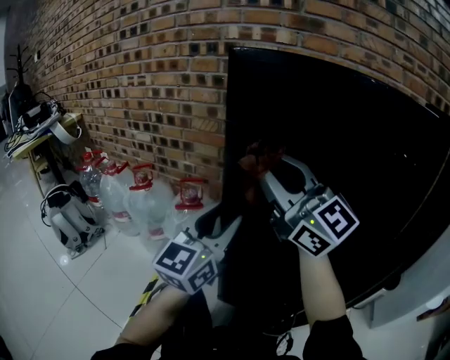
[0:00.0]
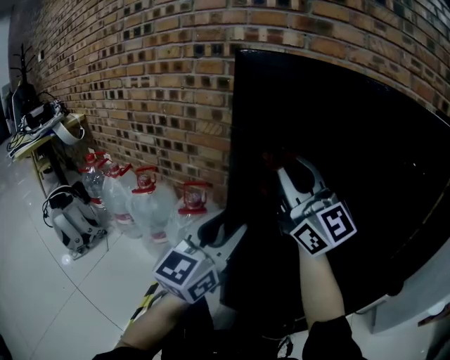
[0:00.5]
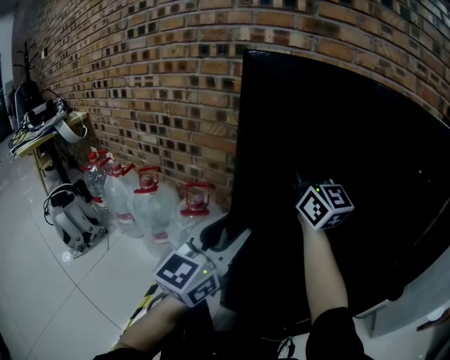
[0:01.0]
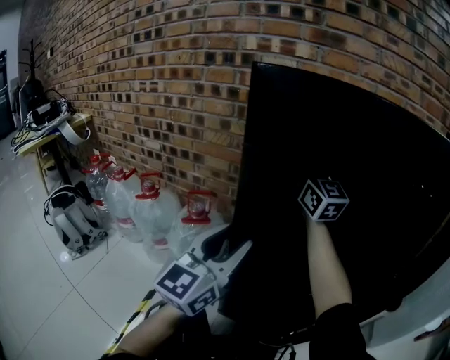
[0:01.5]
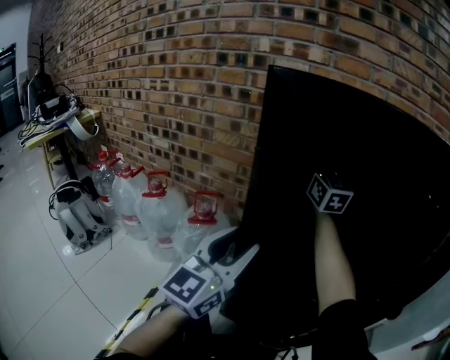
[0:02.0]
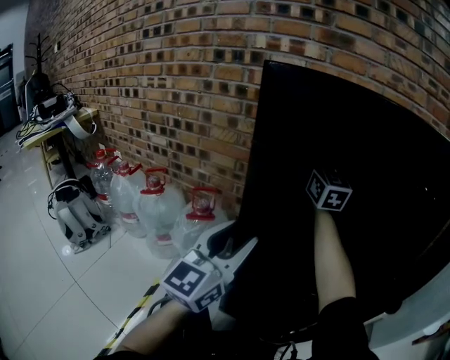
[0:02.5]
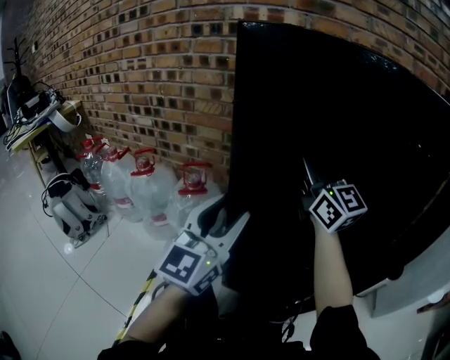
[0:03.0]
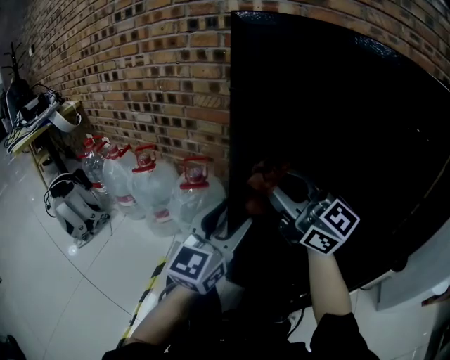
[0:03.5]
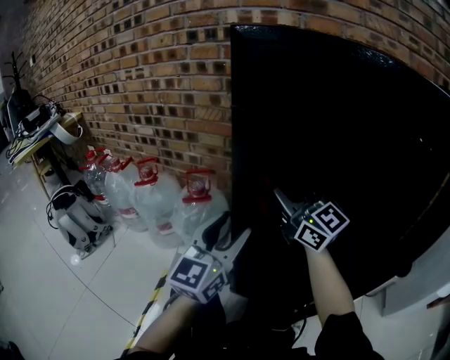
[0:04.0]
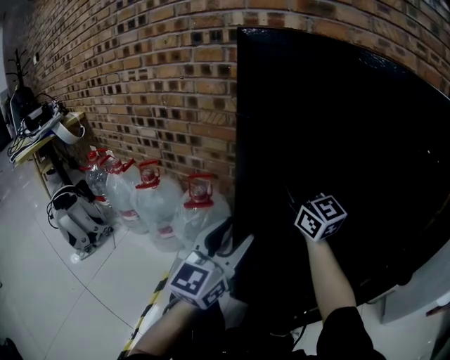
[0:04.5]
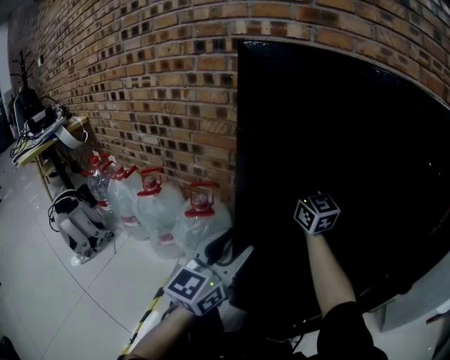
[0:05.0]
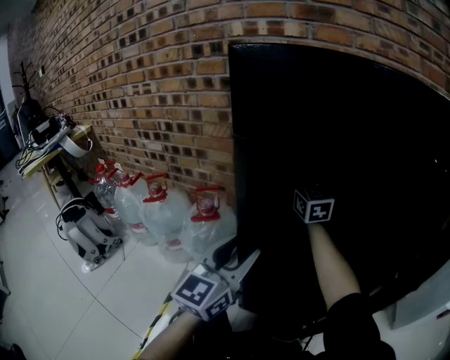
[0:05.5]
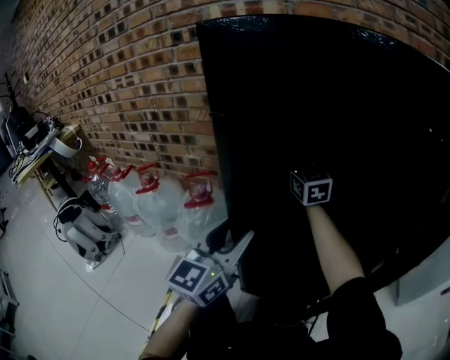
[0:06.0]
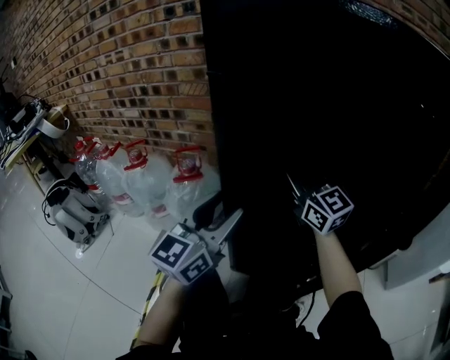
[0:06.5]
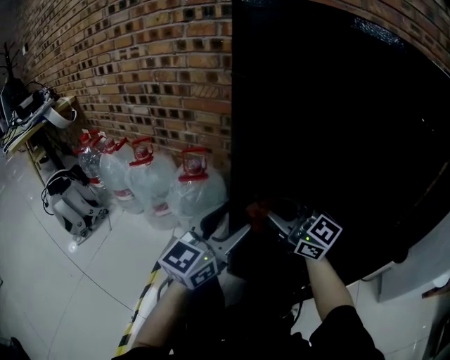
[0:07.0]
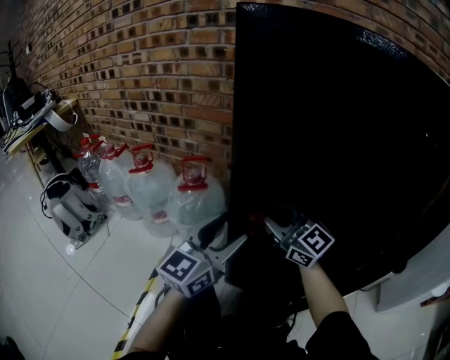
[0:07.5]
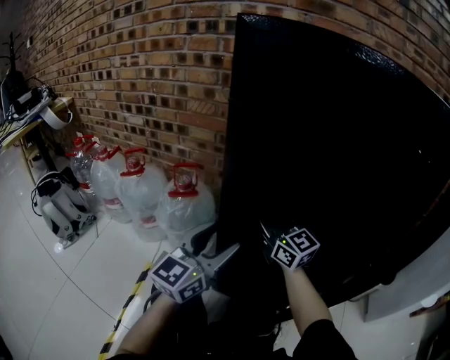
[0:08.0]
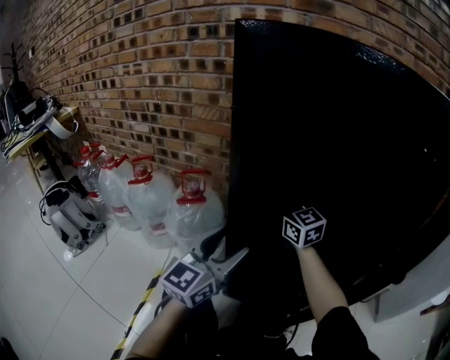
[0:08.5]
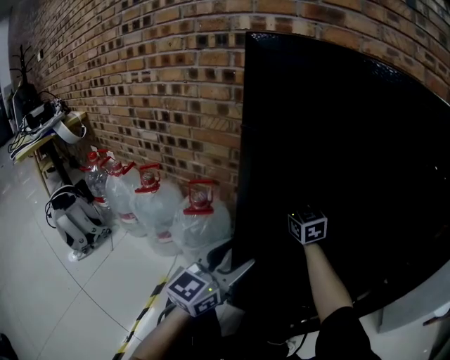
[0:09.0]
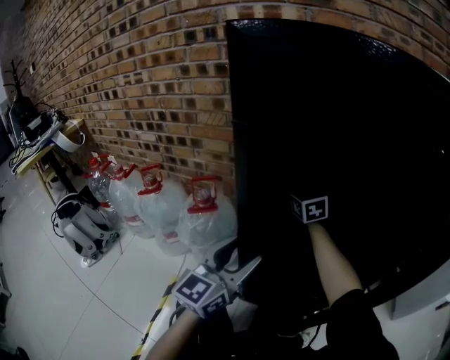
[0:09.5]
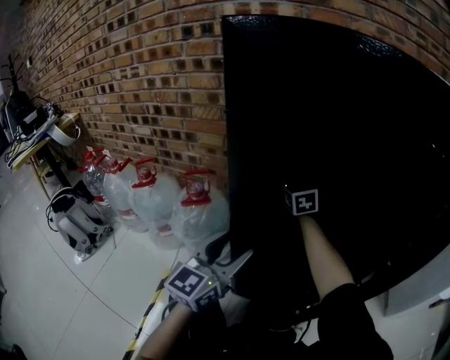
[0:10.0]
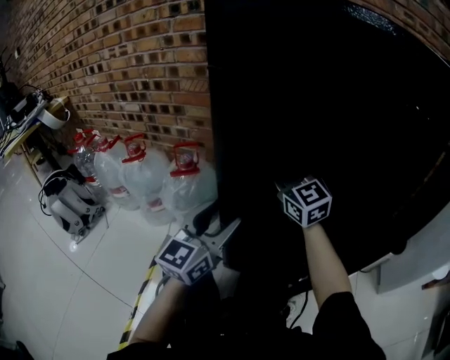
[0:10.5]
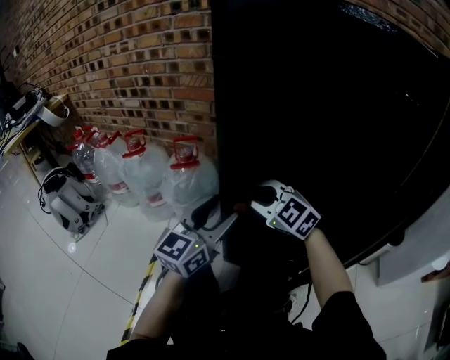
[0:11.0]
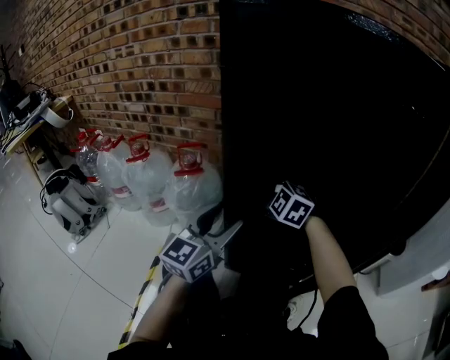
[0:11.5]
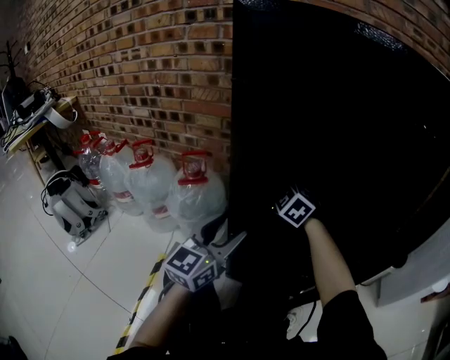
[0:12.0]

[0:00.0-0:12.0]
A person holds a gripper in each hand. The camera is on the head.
0.0 to 2.0 s: The right gripper travels forward by some 25 cm, and swivels about 30 degrees.
2.0 to 4.0 s: The left gripper travels downward by some 5 cm; the right gripper shifts about 20 cm backward, downward and to the left, and rotates some 30 degrees.
4.0 to 6.0 s: The right gripper is displaced forward and to the right by approximately 20 cm, and rotates approximately 30 degrees.
6.0 to 8.0 s: The right gripper travels backward, downward and to the left by some 20 cm, and rotates roughly 30 degrees.
8.0 to 10.0 s: The right gripper moves forward, some 20 cm, and rotates roughly 30 degrees.
10.0 to 12.0 s: The right gripper moves backward and downward, about 15 cm, and swivels some 40 degrees.

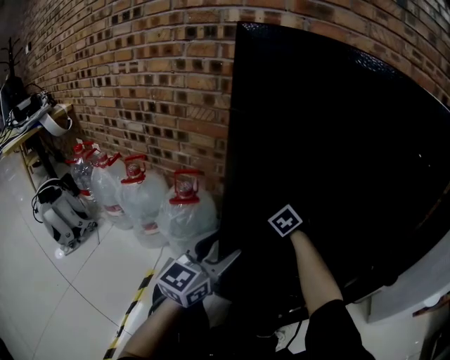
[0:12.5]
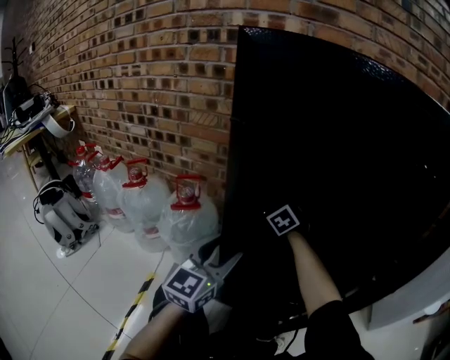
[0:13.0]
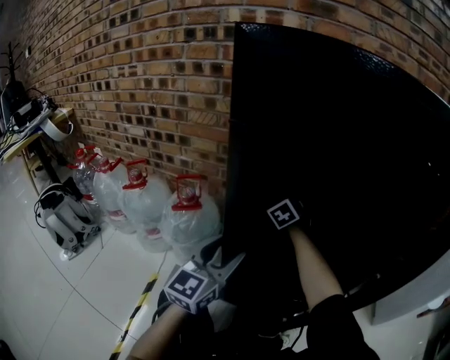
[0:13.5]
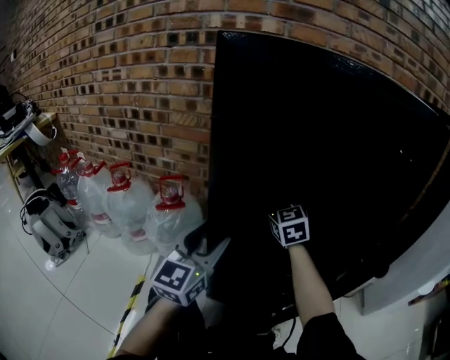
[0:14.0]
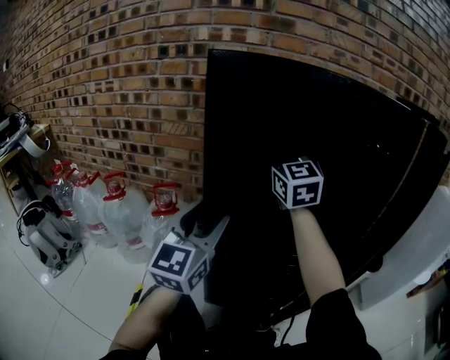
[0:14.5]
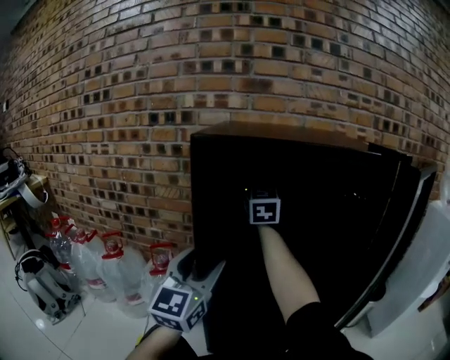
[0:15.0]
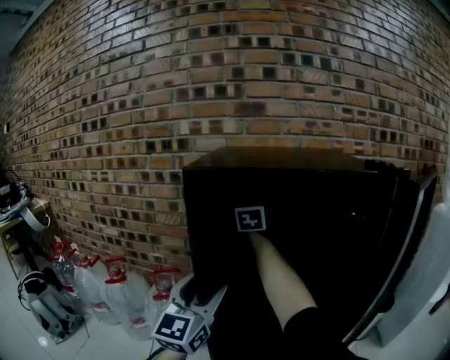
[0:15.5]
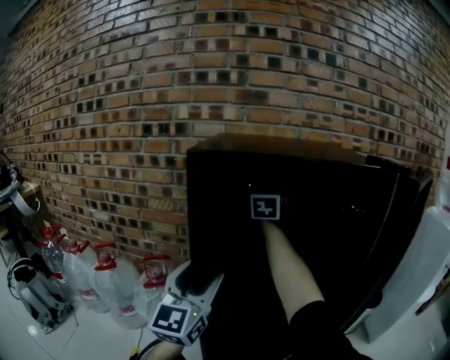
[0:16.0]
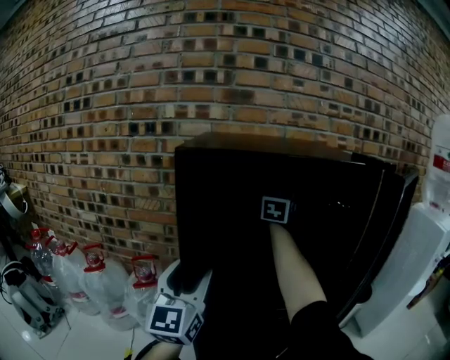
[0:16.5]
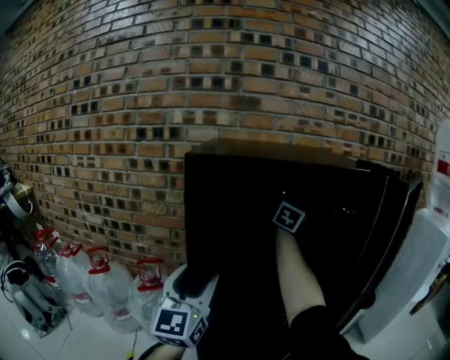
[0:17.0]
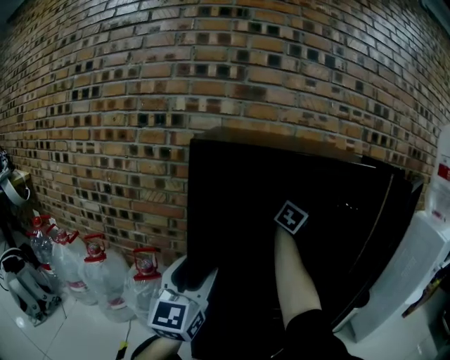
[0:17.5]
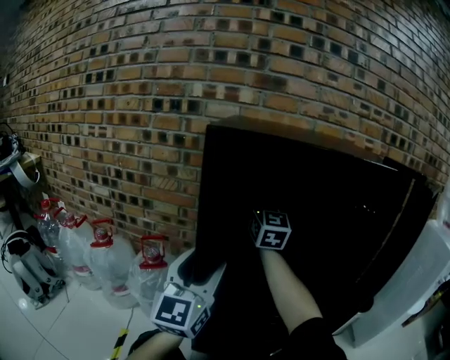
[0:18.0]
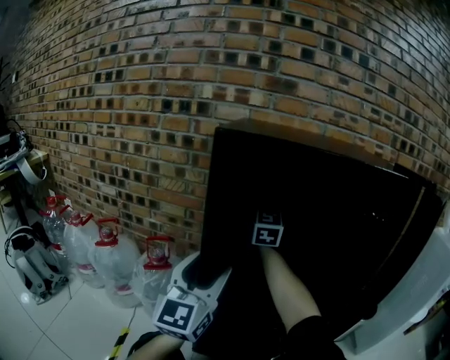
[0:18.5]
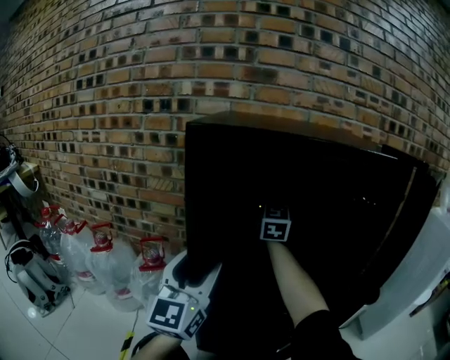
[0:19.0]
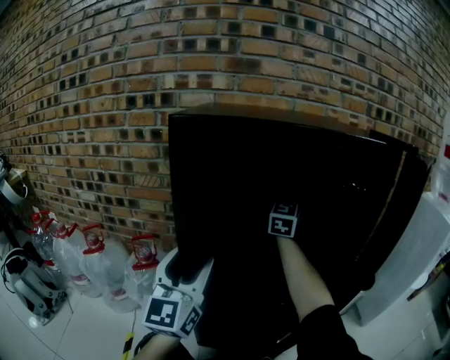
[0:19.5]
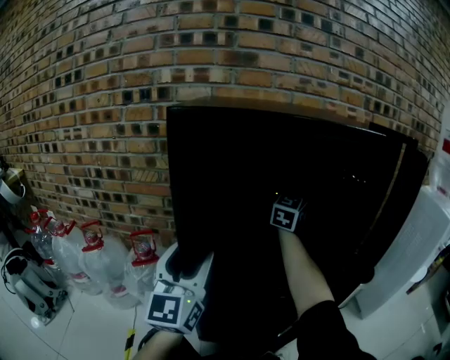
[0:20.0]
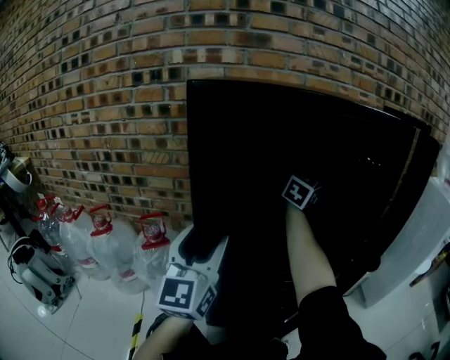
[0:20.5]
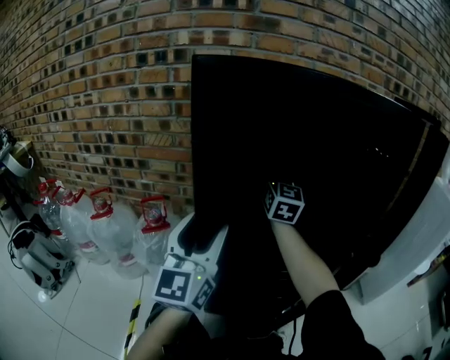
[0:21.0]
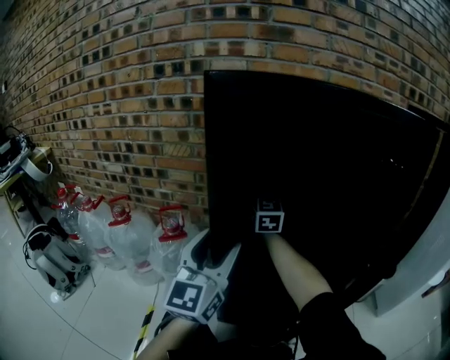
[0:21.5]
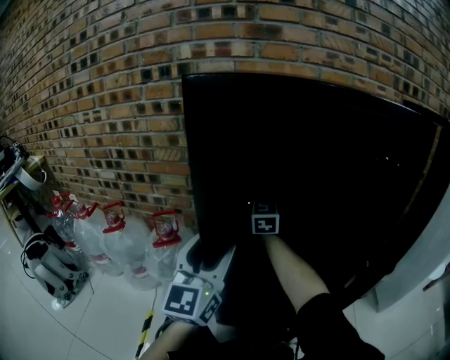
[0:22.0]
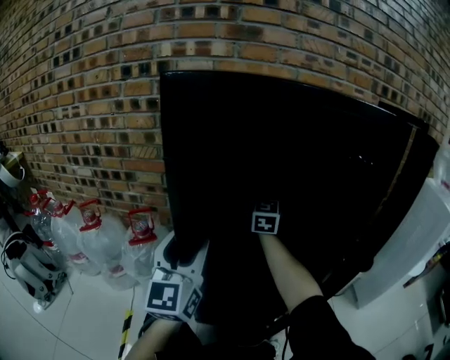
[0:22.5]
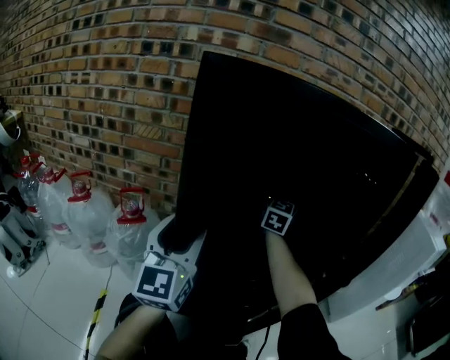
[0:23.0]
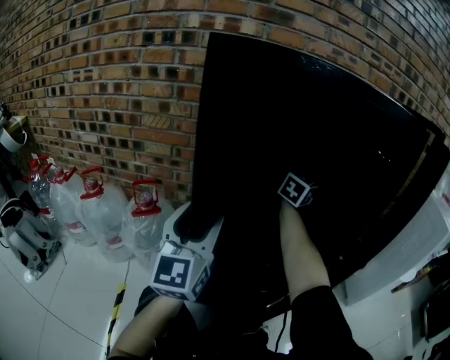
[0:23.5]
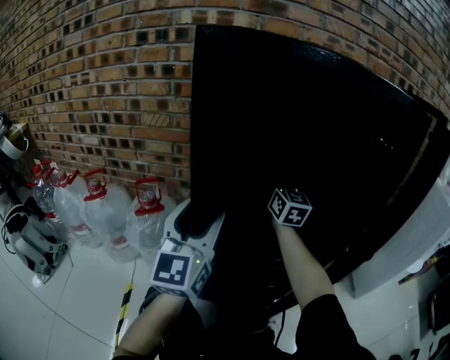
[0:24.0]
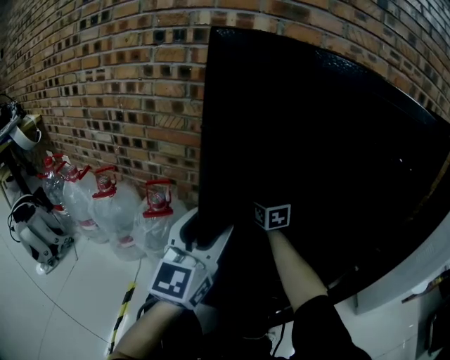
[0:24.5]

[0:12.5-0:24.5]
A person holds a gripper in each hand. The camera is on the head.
12.5 to 14.5 s: The right gripper heads upward, covering about 30 cm, and tips its fingers upward by approximately 40 degrees. Meanwhile the left gripper goes about 10 cm upward.
14.5 to 16.5 s: The right gripper goes roughly 20 cm to the right, upward and forward, and turns by approximately 40 degrees.
16.5 to 18.5 s: The right gripper travels to the left and downward by some 15 cm, and swivels some 20 degrees.
18.5 to 20.5 s: The right gripper heads to the right, covering approximately 25 cm, and changes its angle by some 40 degrees.
20.5 to 22.5 s: The right gripper travels to the left and downward by approximately 15 cm, and rotates approximately 30 degrees.
22.5 to 24.5 s: The right gripper ends up approximately 15 cm from where it was, and changes its angle by some 30 degrees.

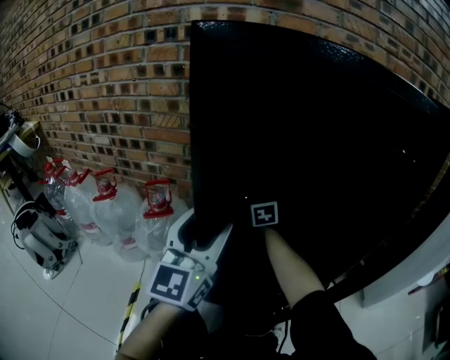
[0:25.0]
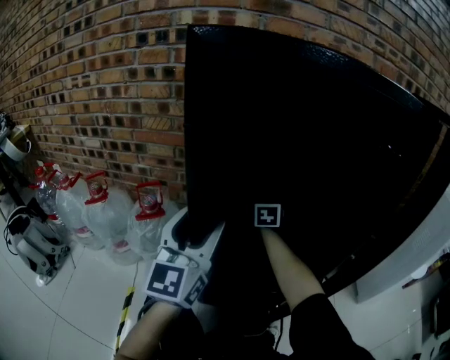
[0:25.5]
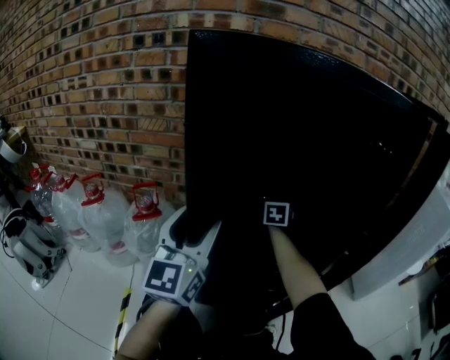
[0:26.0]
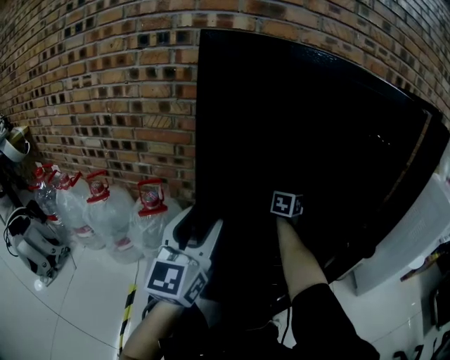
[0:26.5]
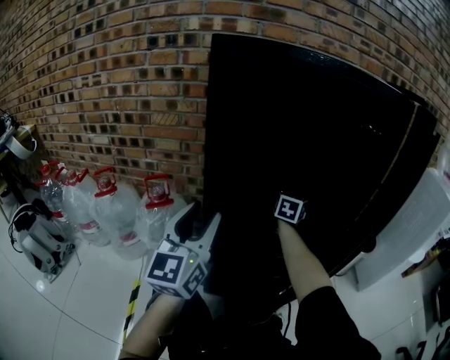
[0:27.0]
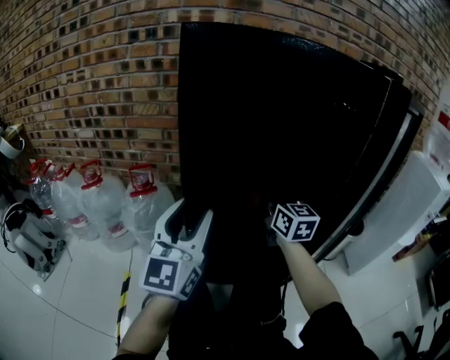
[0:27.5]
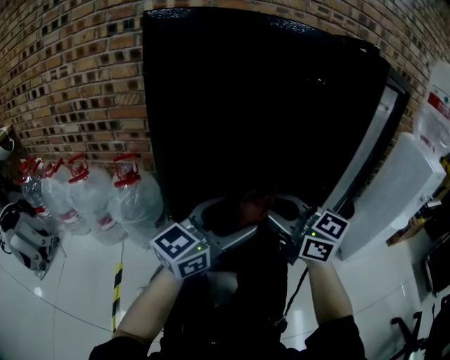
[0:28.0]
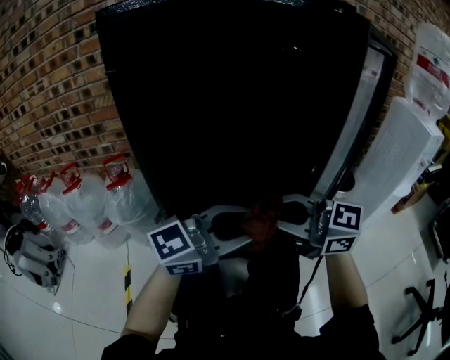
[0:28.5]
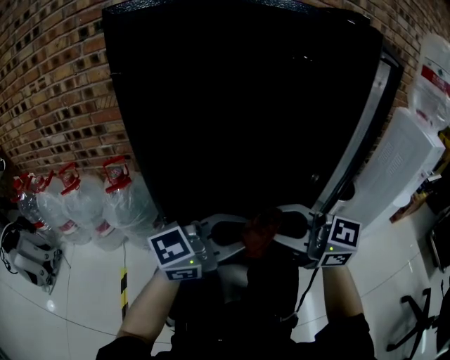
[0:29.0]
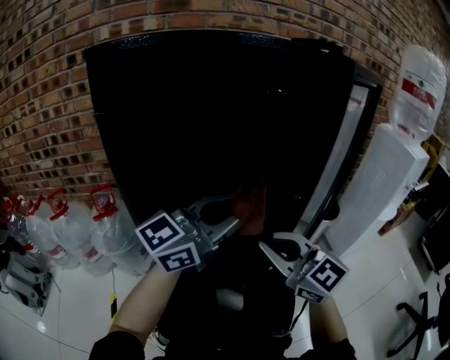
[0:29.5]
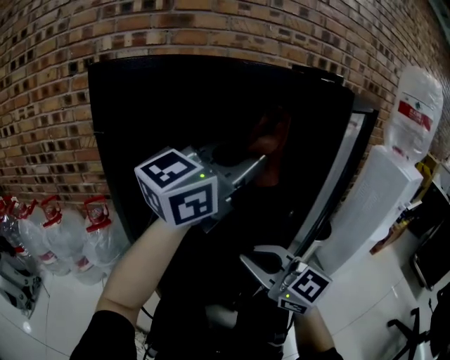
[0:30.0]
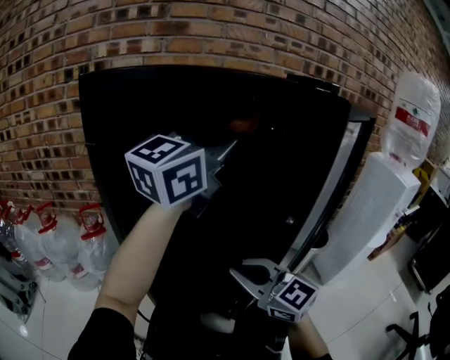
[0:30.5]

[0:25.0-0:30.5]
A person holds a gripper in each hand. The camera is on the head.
25.0 to 27.0 s: The left gripper travels backward by roughly 5 cm, while the right gripper moves to the right, roughly 20 cm, and rotates roughly 40 degrees.
27.0 to 28.5 s: The right gripper changes place by approximately 40 cm, and rotates roughly 80 degrees; the left gripper moves about 25 cm, and swivels roughly 60 degrees.
28.5 to 30.5 s: The right gripper shifts by roughly 5 cm, and swivels about 30 degrees; the left gripper shifts approximately 25 cm upward, and changes its angle by approximately 30 degrees.
